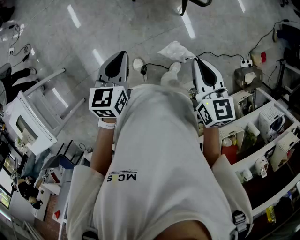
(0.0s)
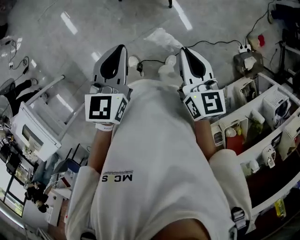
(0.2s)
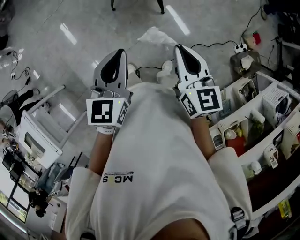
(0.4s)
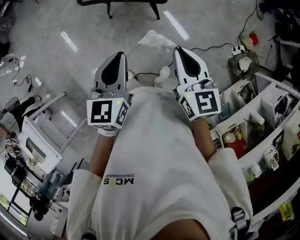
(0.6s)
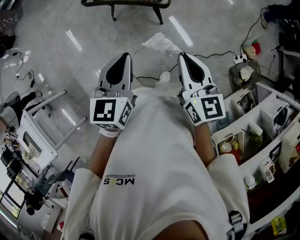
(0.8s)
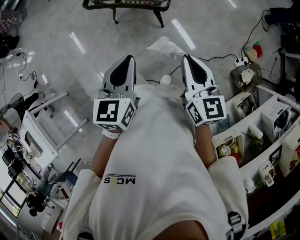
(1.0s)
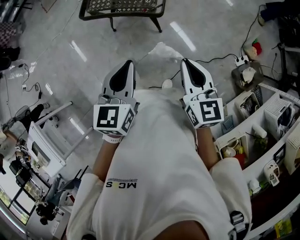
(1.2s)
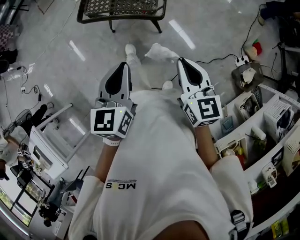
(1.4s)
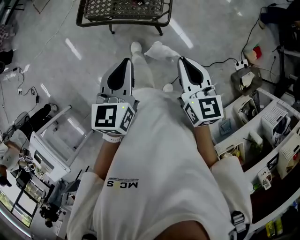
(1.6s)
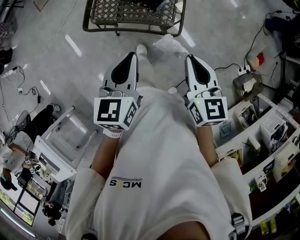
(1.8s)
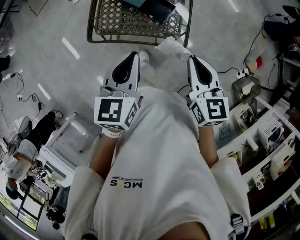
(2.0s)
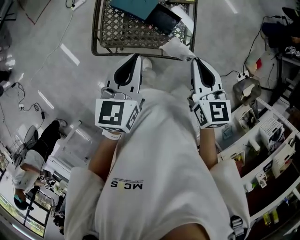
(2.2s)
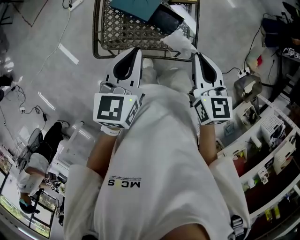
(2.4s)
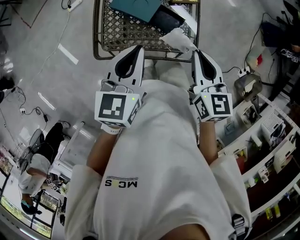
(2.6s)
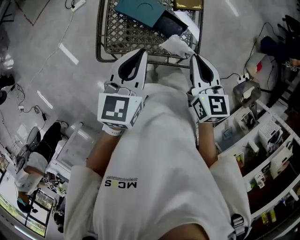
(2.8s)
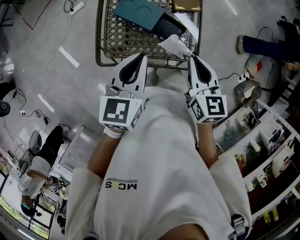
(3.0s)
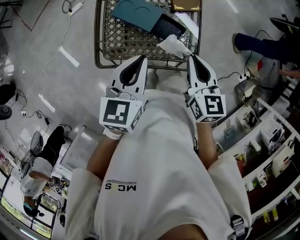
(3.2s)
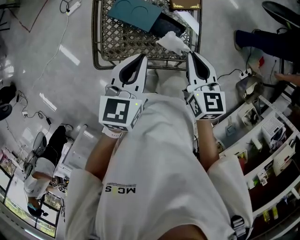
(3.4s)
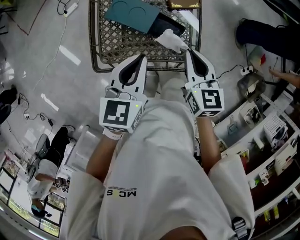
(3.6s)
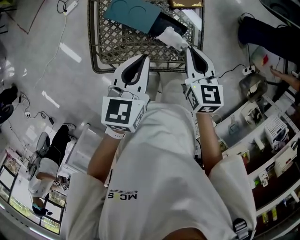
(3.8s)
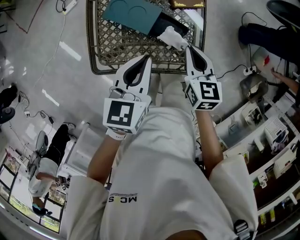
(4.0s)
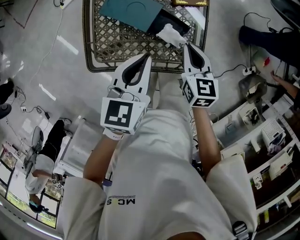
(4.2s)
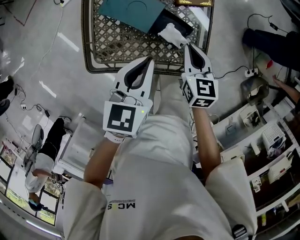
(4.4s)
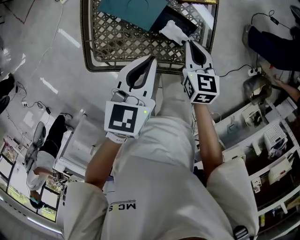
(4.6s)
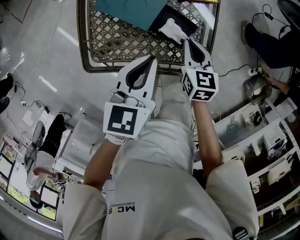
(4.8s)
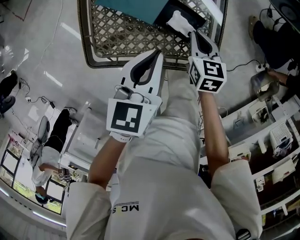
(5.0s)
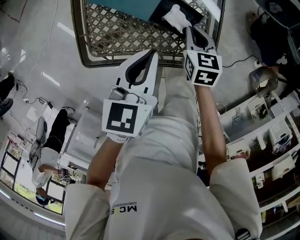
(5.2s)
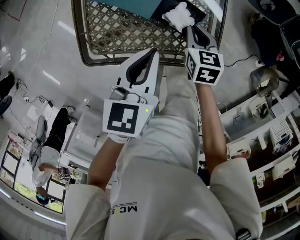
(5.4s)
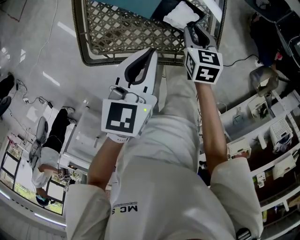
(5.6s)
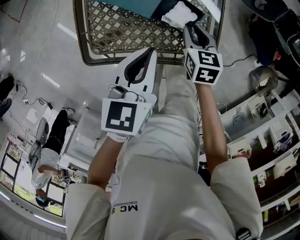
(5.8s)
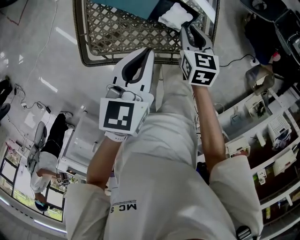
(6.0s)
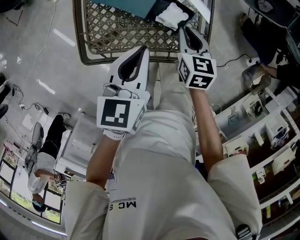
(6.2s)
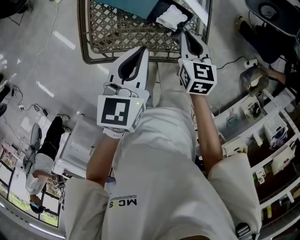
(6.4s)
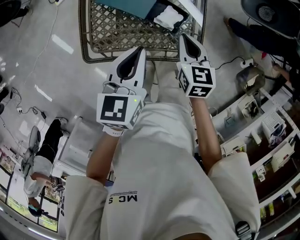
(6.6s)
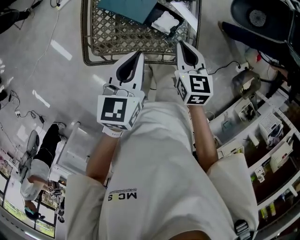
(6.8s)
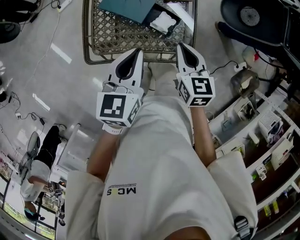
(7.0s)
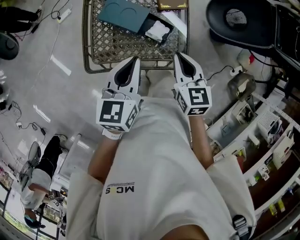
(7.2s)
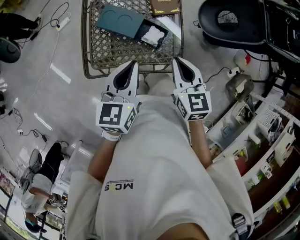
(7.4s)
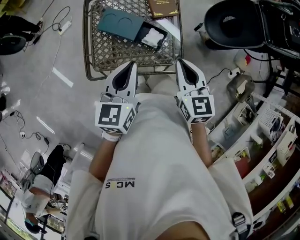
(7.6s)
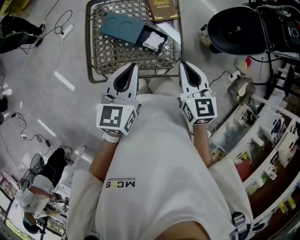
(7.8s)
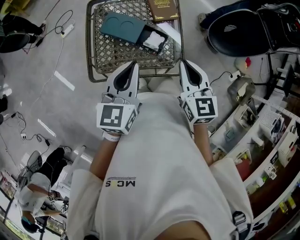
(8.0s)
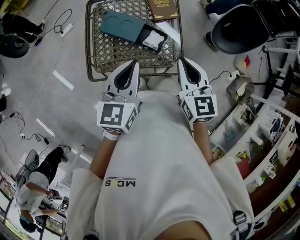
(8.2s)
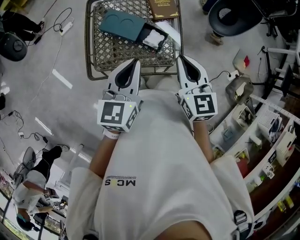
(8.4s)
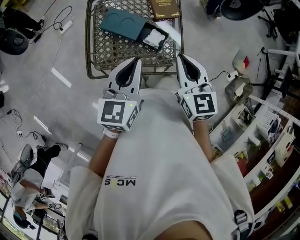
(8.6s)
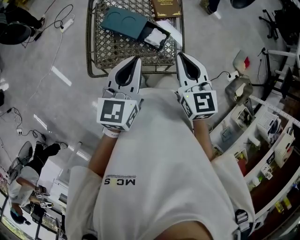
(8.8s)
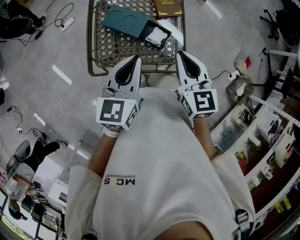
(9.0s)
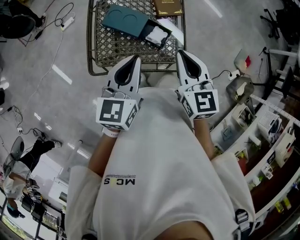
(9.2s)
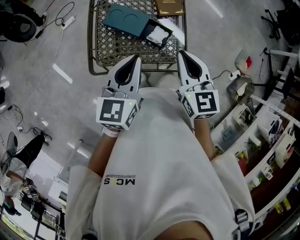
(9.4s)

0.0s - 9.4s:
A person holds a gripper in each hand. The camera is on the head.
0.0s - 1.6s: The grippers both shift to the right and forward by roughly 25 cm.
1.6s - 3.2s: Both grippers move forward and to the left, approximately 35 cm.
3.2s - 4.8s: The left gripper goes approximately 15 cm downward and forward; the right gripper heads downward, covering about 20 cm.
4.8s - 6.2s: There are only small adjustments of the grippers.
6.2s - 7.8s: The right gripper heads upward and backward, covering roughly 25 cm, and rotates about 20 degrees, while the left gripper moves upward and backward, roughly 15 cm.
7.8s - 9.4s: The grippers make only small movements.

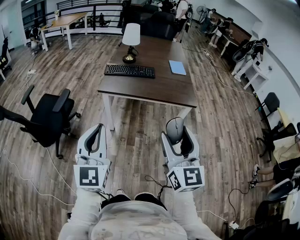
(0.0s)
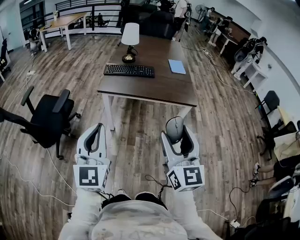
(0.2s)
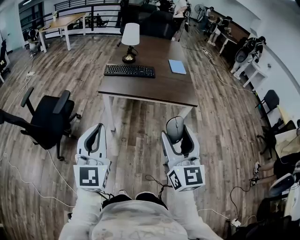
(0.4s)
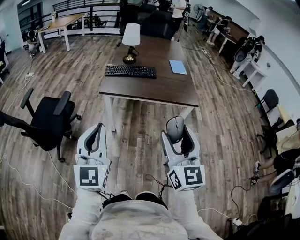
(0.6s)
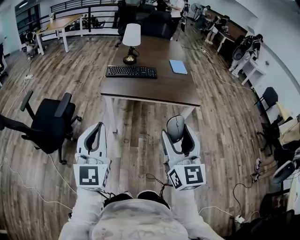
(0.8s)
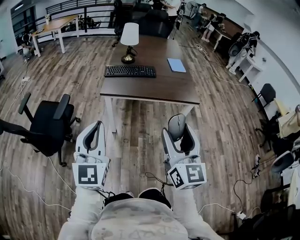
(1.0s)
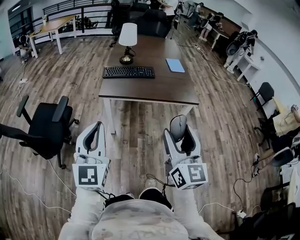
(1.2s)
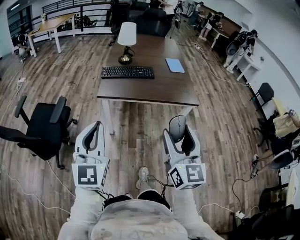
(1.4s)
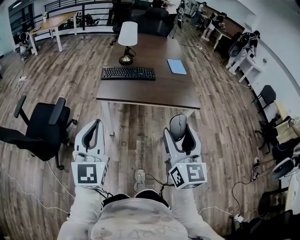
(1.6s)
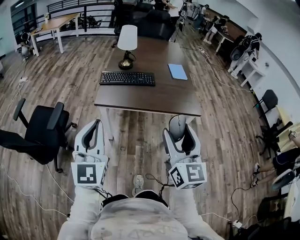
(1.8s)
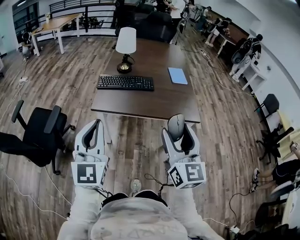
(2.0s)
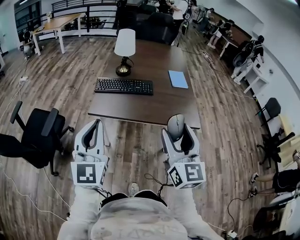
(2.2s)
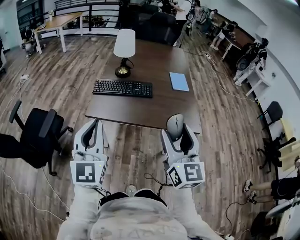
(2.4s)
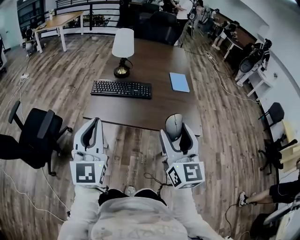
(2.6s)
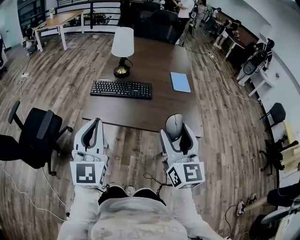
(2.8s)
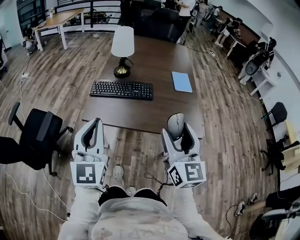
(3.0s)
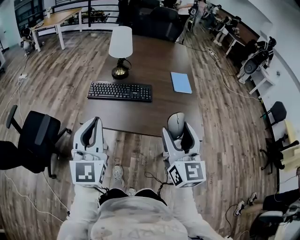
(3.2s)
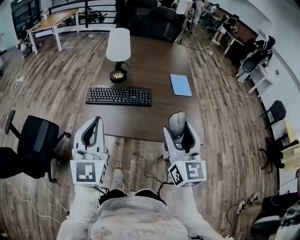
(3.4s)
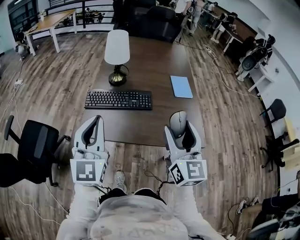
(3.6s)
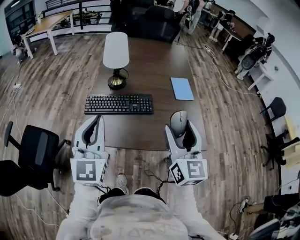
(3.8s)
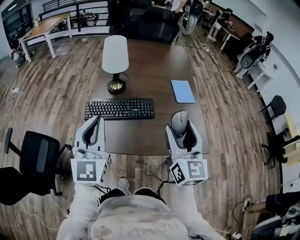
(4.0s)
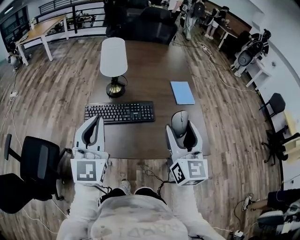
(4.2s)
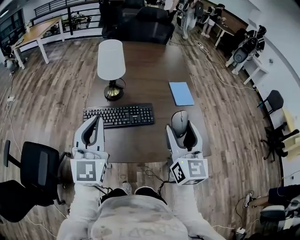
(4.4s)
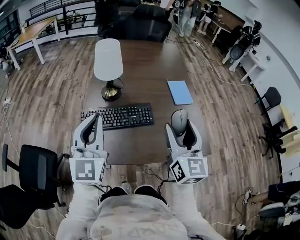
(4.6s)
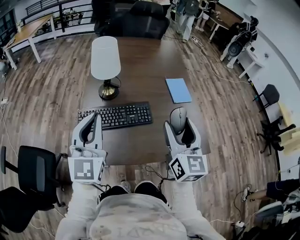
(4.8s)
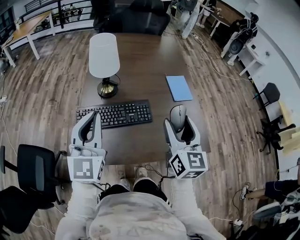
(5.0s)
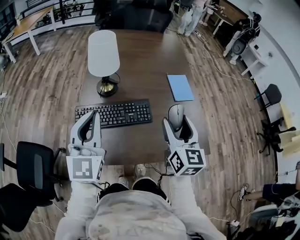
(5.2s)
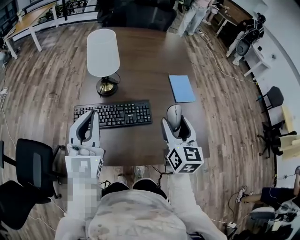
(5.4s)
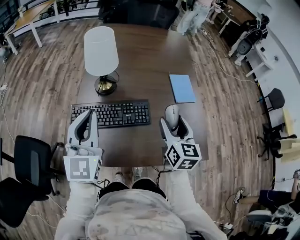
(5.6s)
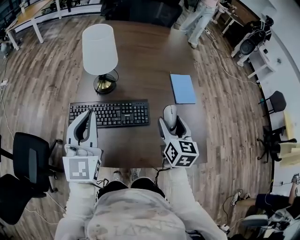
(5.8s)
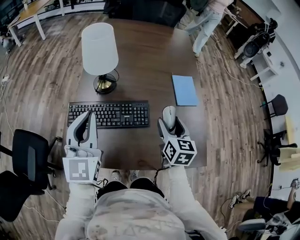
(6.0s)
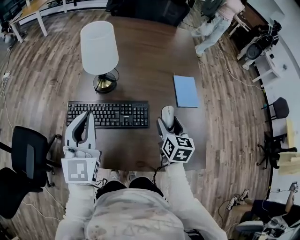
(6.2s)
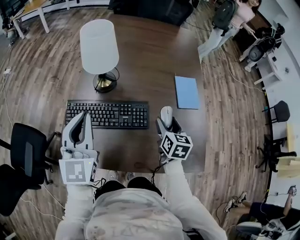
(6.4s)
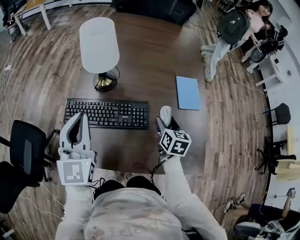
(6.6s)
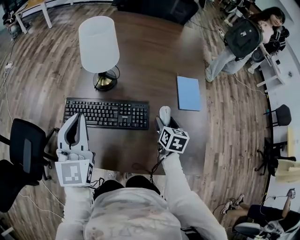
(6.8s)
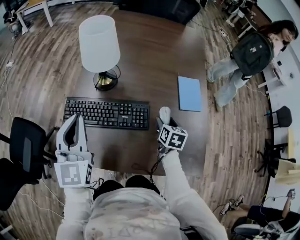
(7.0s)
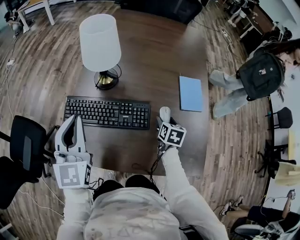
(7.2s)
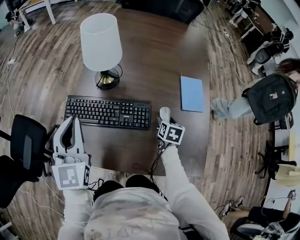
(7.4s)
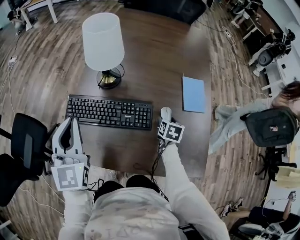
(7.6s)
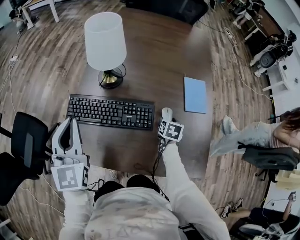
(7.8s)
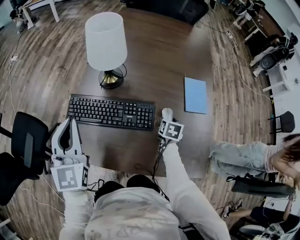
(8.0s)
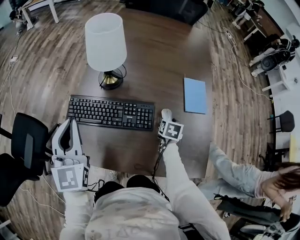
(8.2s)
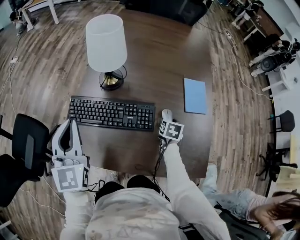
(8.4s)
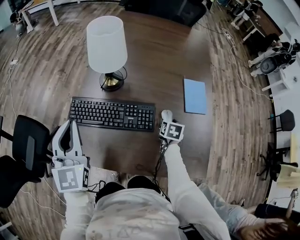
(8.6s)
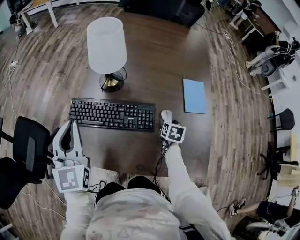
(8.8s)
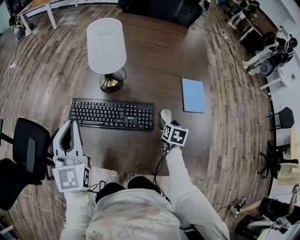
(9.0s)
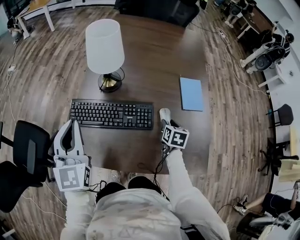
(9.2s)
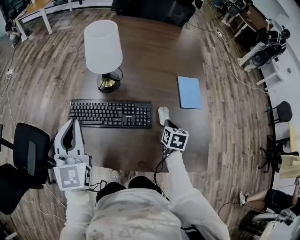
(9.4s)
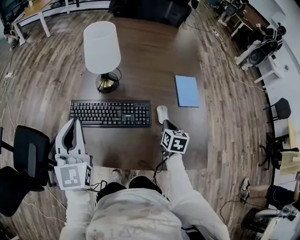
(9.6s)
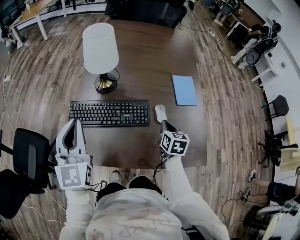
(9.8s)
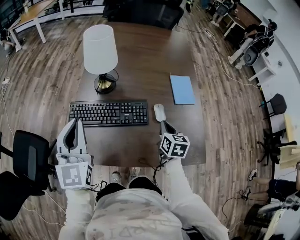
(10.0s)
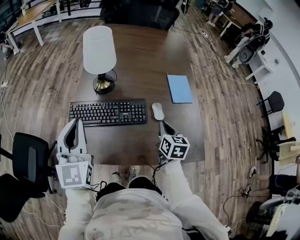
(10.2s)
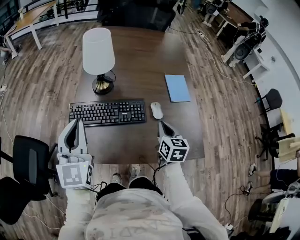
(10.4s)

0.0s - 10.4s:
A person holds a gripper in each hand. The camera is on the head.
0.0s - 1.4s: Both grippers travel together forward and to the left, some 10 cm.
1.4s - 3.0s: The right gripper shifts about 30 cm forward. The left gripper shifts some 30 cm forward and to the right.
3.0s - 4.4s: The grippers both shift forward by roughly 25 cm.
4.4s - 6.0s: The right gripper heads forward and downward, covering some 25 cm, and changes its angle by some 30 degrees; the left gripper goes some 15 cm forward and downward.
6.0s - 7.4s: The right gripper goes about 20 cm downward and forward, and turns by approximately 30 degrees.
7.4s - 9.0s: The grippers move only a little.
9.0s - 10.4s: The left gripper heads backward, covering some 5 cm, while the right gripper travels upward and backward by approximately 20 cm, swivels approximately 20 degrees, and closes its fingers.

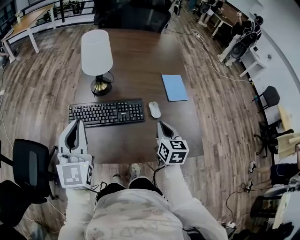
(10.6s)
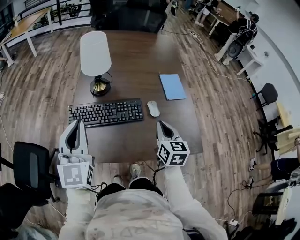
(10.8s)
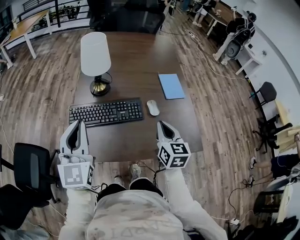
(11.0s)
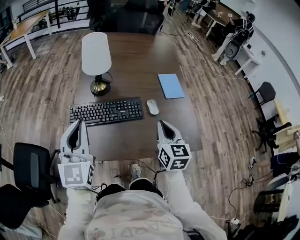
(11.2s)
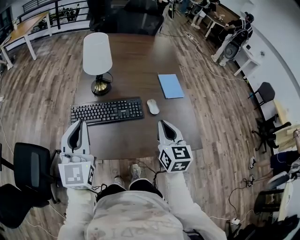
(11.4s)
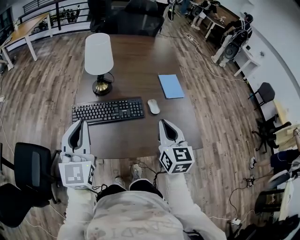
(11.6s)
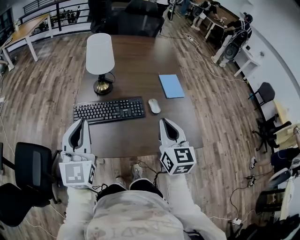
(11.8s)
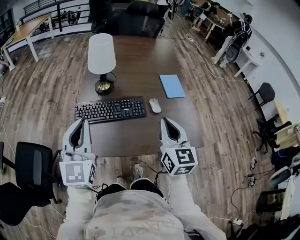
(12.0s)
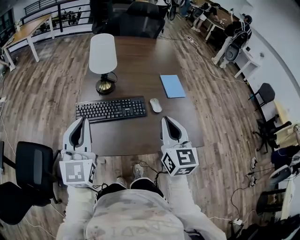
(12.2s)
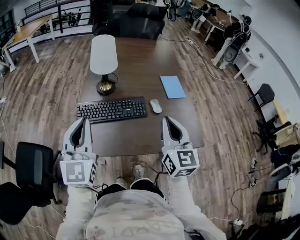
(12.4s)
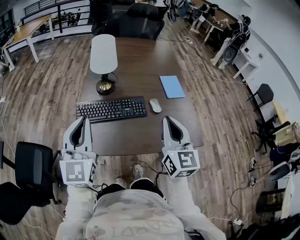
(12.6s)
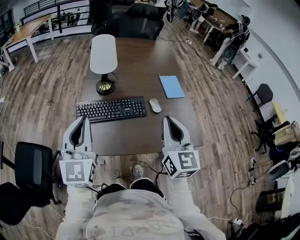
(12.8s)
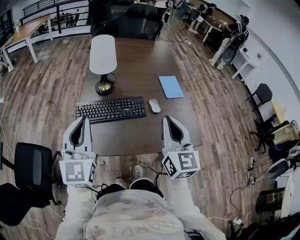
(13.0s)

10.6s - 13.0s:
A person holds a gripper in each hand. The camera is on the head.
10.6s - 11.8s: The right gripper goes about 15 cm upward and backward; the left gripper moves backward, approximately 5 cm.
11.8s - 13.0s: The right gripper moves upward, some 5 cm.

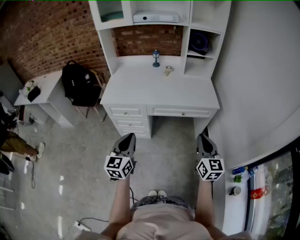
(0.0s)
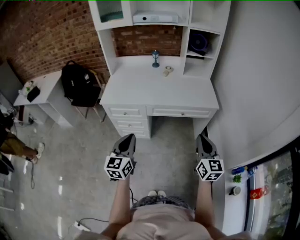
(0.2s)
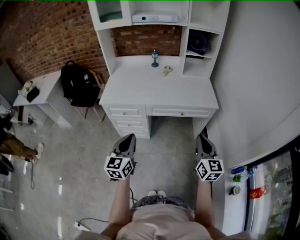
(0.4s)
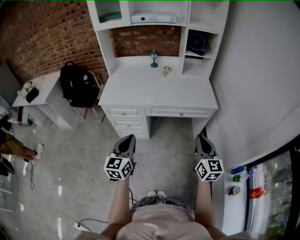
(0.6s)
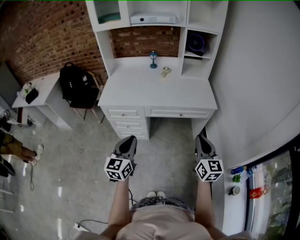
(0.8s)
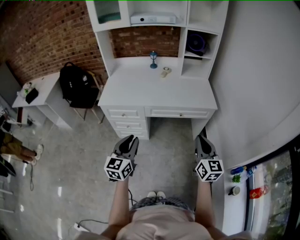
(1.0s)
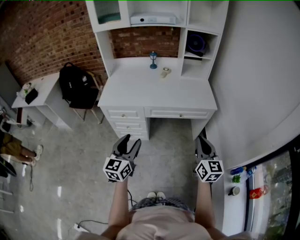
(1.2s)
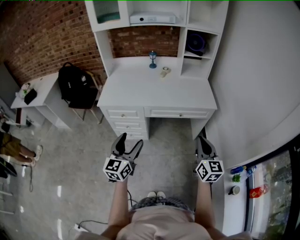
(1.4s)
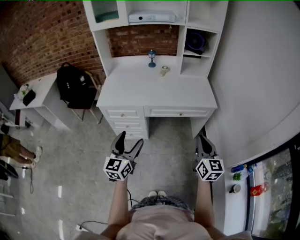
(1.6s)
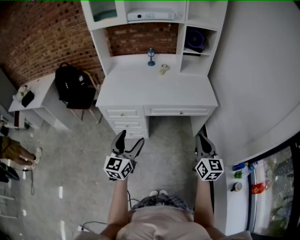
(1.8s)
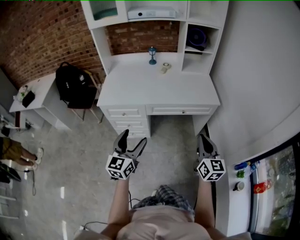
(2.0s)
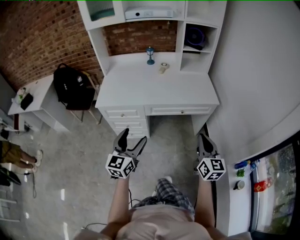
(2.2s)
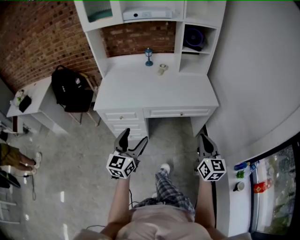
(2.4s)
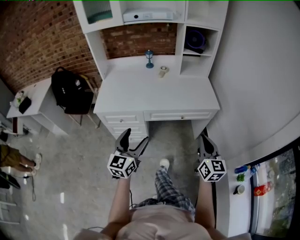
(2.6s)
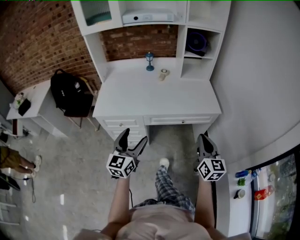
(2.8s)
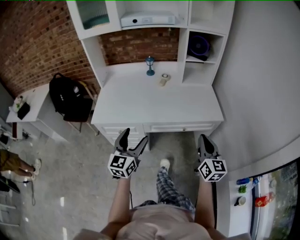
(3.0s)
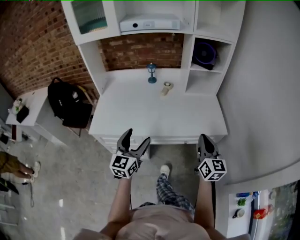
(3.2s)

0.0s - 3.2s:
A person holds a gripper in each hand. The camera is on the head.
0.0s - 1.6s: The left gripper opens its fingers.
1.6s - 3.2s: The two grippers go approximately 30 cm forward.
